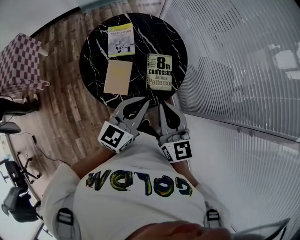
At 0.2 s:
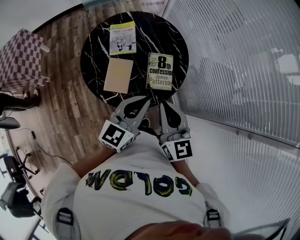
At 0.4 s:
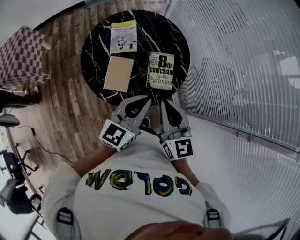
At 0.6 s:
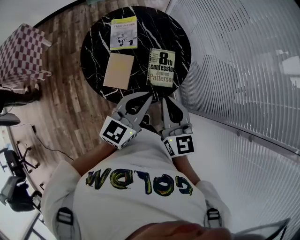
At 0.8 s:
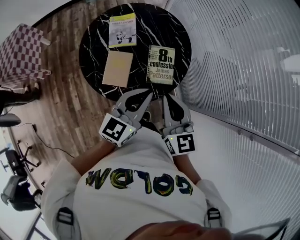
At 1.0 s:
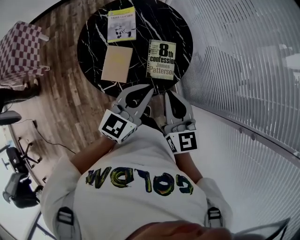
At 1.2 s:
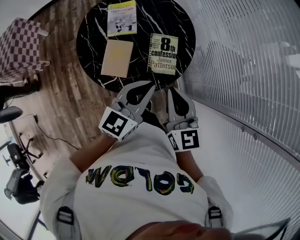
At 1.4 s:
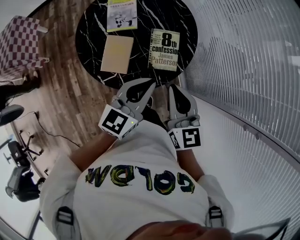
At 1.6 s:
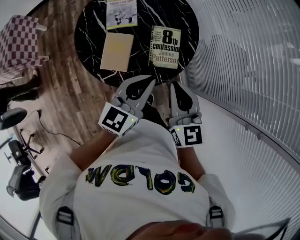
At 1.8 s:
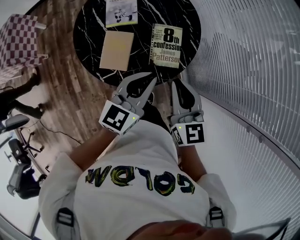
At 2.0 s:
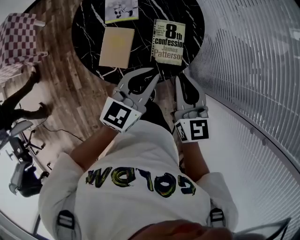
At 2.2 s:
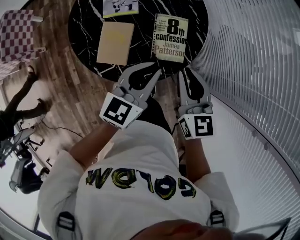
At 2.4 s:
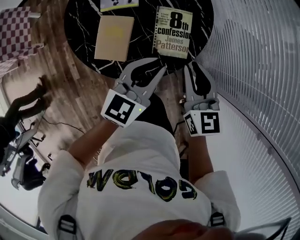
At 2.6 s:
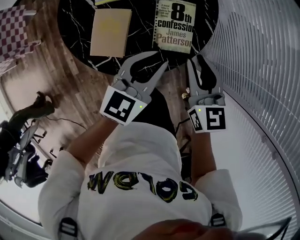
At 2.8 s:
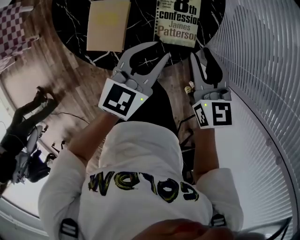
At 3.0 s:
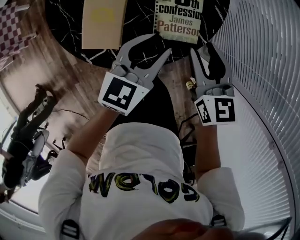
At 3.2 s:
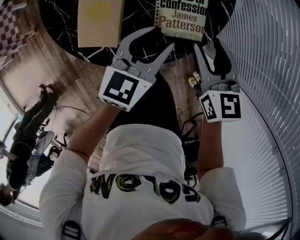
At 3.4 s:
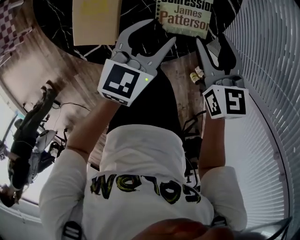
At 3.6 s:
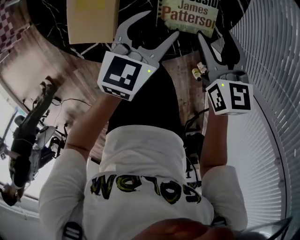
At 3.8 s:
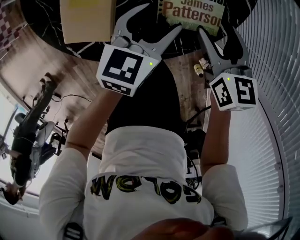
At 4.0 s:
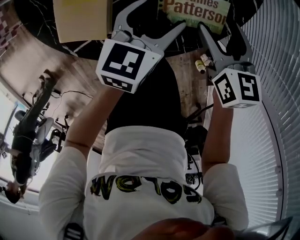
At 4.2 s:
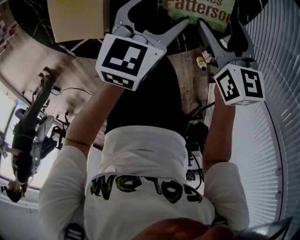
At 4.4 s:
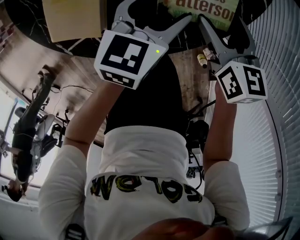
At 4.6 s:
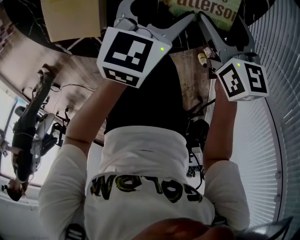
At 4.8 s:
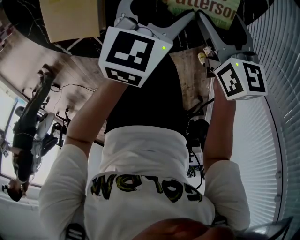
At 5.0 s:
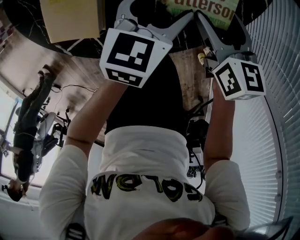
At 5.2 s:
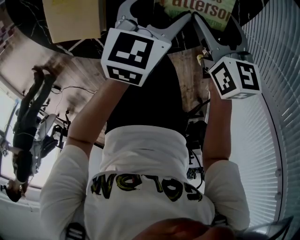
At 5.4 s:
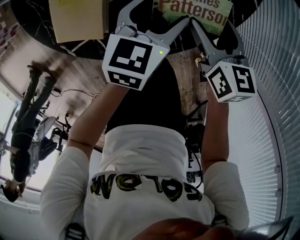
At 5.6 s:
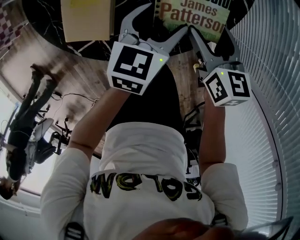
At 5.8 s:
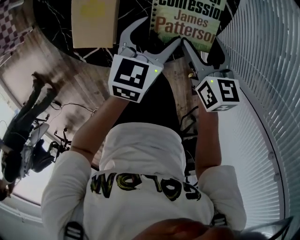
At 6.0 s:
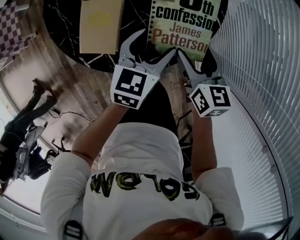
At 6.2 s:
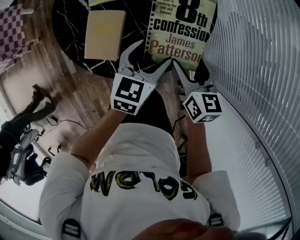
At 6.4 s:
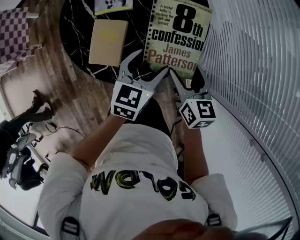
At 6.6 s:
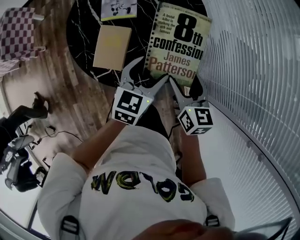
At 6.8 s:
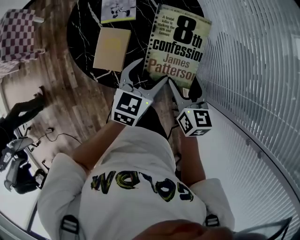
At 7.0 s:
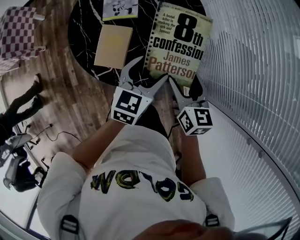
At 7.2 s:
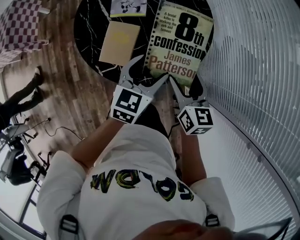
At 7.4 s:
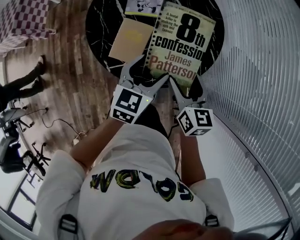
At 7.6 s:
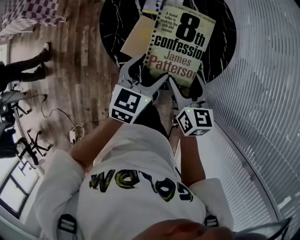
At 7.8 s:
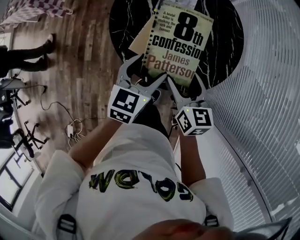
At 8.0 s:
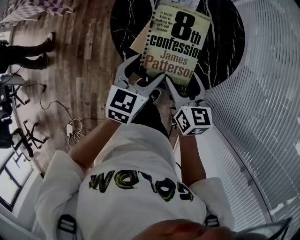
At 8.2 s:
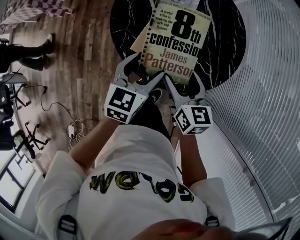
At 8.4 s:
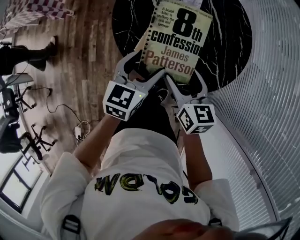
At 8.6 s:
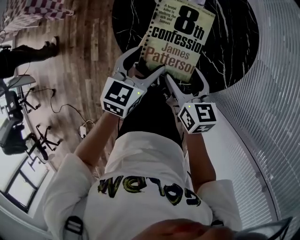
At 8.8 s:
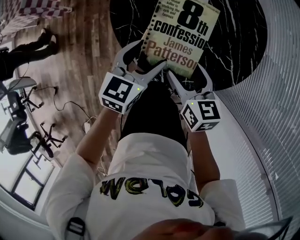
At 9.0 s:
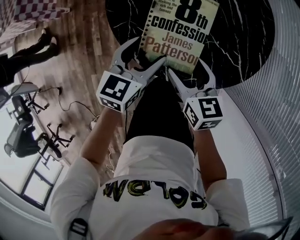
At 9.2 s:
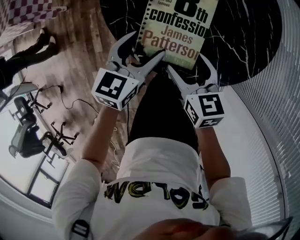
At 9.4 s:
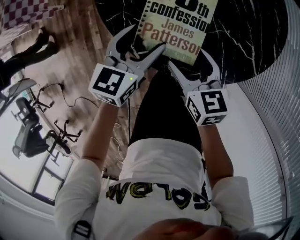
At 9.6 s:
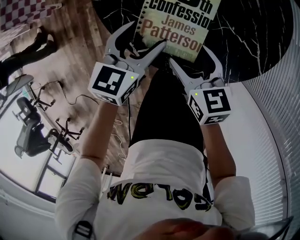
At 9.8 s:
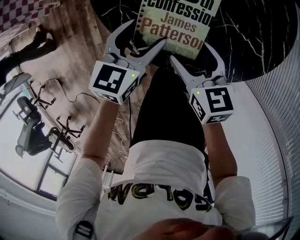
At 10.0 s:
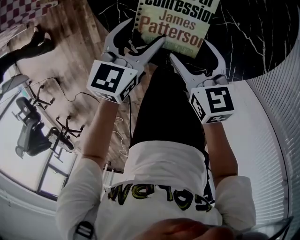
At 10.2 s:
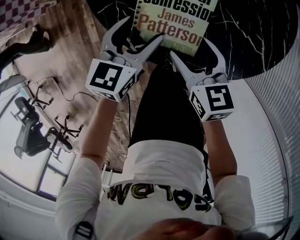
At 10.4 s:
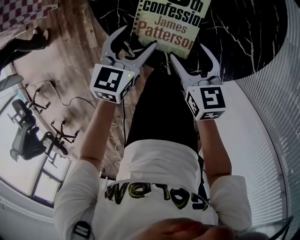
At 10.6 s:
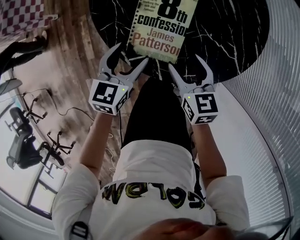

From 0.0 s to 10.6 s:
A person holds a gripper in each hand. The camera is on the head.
From 0.0 s to 1.6 s: The left gripper ends up some 5 cm from where it was. The right gripper moves downward, some 5 cm.
From 1.6 s to 3.0 s: The left gripper moves downward, roughly 20 cm, and opens up; the right gripper heads downward and forward, covering approximately 20 cm, and opens its fingers.
From 3.0 s to 4.6 s: Both grippers travel together downward, about 20 cm. The left gripper opens up. Meanwhile the right gripper opens its fingers.
From 4.6 s to 6.0 s: Both grippers move upward, roughly 10 cm.
From 6.0 s to 7.6 s: The two grippers go roughly 20 cm to the left and upward.
From 7.6 s to 9.0 s: The grippers both shift to the left and downward by about 15 cm.

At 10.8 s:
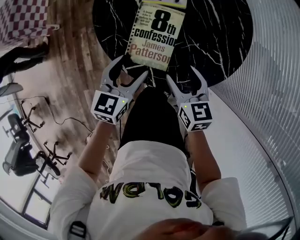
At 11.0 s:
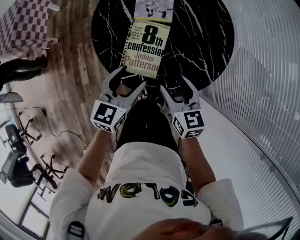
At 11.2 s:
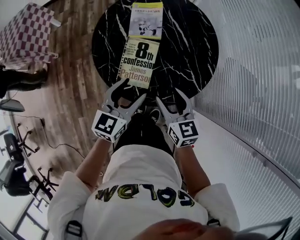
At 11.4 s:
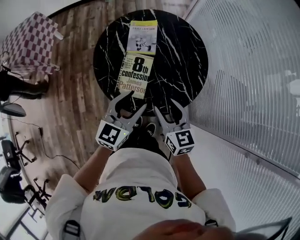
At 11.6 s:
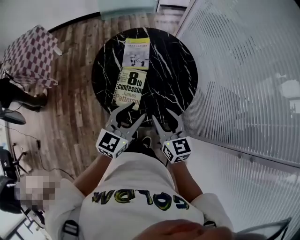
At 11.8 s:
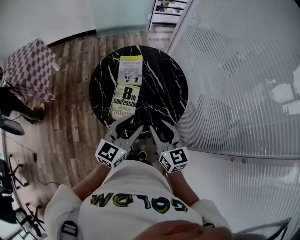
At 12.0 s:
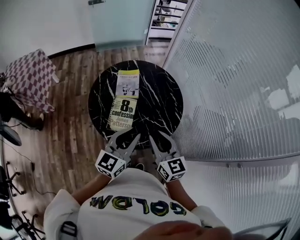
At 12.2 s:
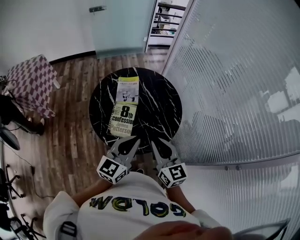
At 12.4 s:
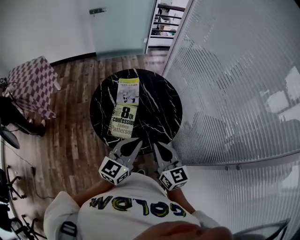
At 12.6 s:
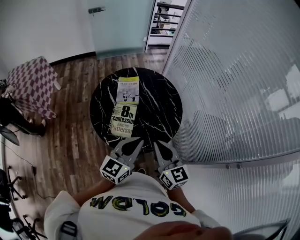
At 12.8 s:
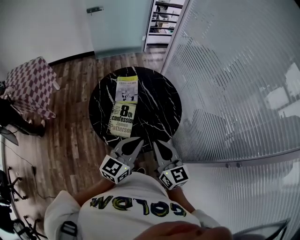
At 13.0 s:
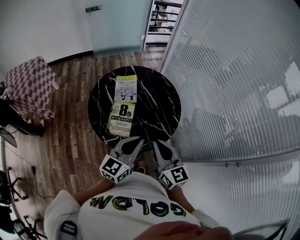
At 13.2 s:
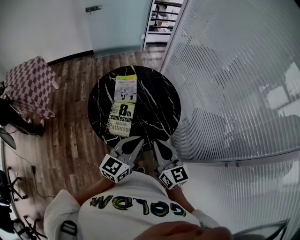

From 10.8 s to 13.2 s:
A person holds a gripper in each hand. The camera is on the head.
From 10.8 s to 12.0 s: The right gripper heads upward, covering roughly 25 cm, turns by some 30 degrees, and closes up. Meanwhile the left gripper heads upward and to the right, covering some 30 cm, rotates some 30 degrees, and closes.
From 12.0 s to 13.2 s: The grippers stay close to where they were, moving slightly.

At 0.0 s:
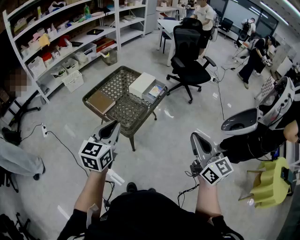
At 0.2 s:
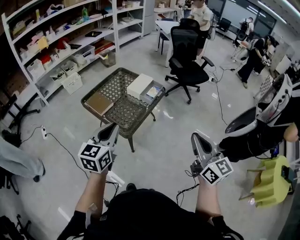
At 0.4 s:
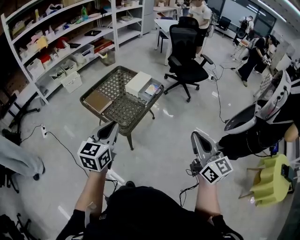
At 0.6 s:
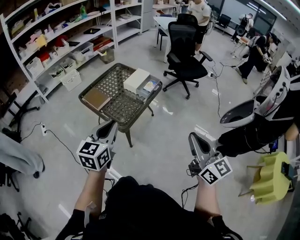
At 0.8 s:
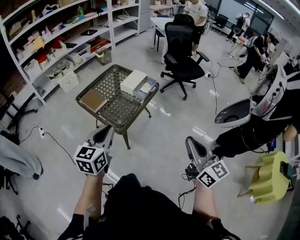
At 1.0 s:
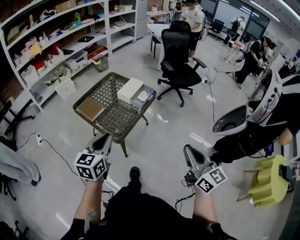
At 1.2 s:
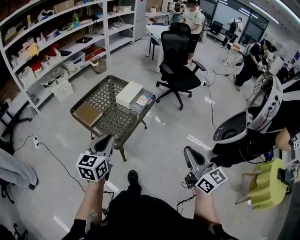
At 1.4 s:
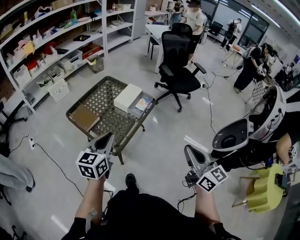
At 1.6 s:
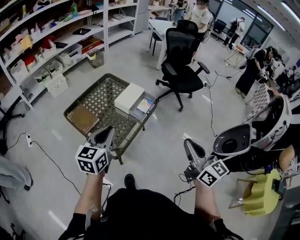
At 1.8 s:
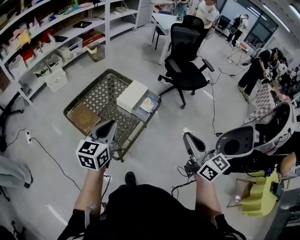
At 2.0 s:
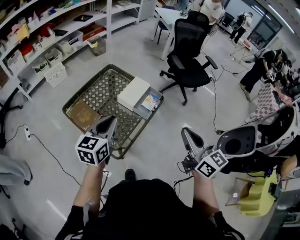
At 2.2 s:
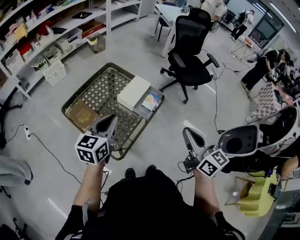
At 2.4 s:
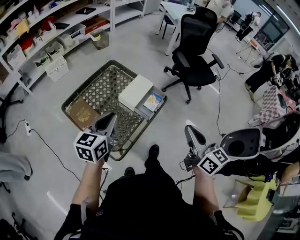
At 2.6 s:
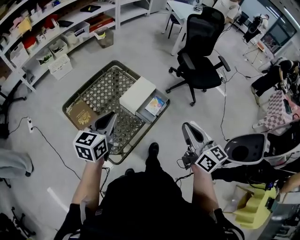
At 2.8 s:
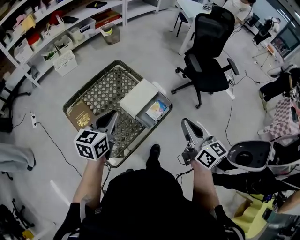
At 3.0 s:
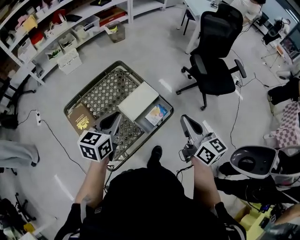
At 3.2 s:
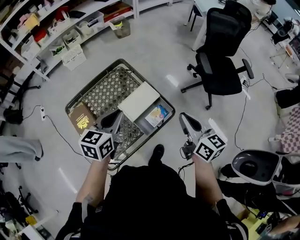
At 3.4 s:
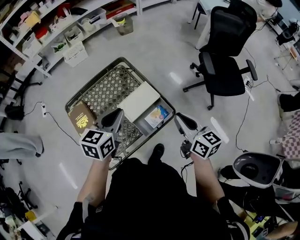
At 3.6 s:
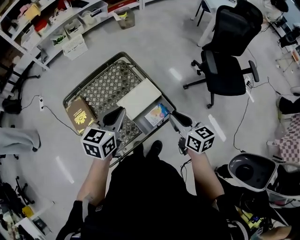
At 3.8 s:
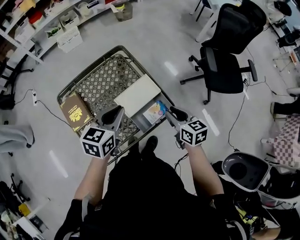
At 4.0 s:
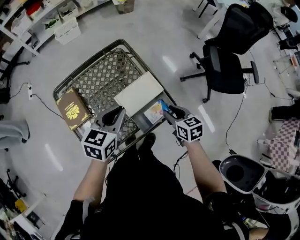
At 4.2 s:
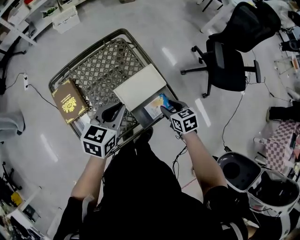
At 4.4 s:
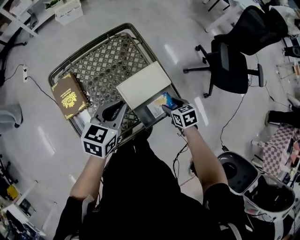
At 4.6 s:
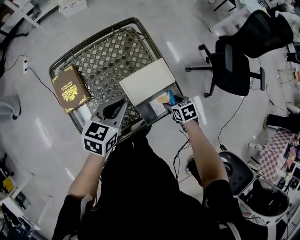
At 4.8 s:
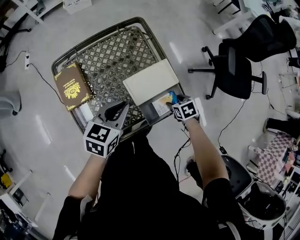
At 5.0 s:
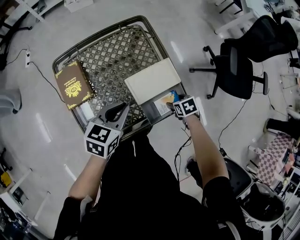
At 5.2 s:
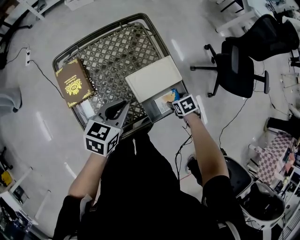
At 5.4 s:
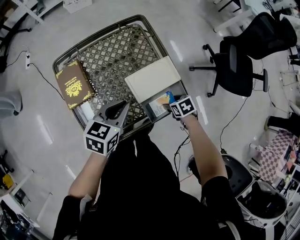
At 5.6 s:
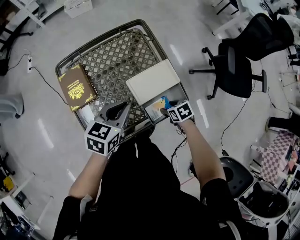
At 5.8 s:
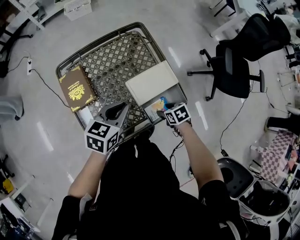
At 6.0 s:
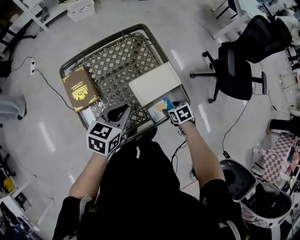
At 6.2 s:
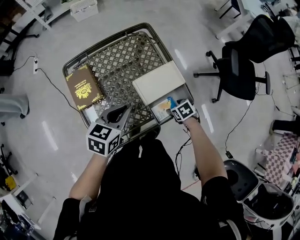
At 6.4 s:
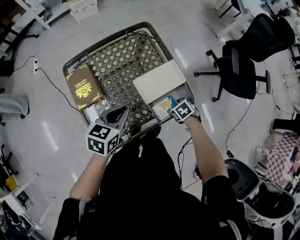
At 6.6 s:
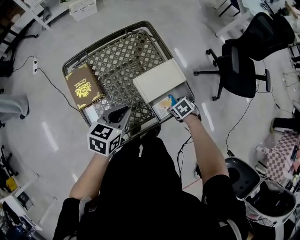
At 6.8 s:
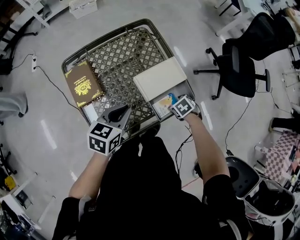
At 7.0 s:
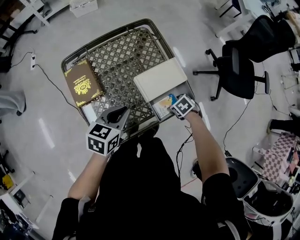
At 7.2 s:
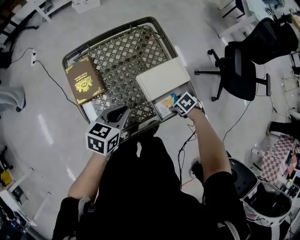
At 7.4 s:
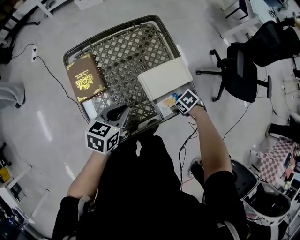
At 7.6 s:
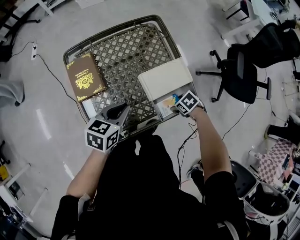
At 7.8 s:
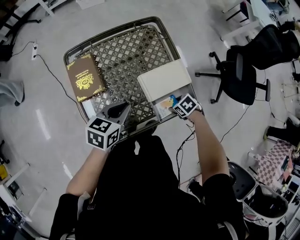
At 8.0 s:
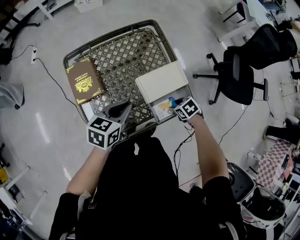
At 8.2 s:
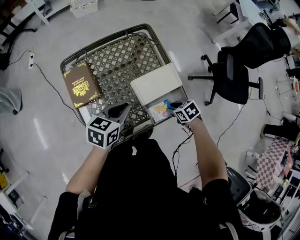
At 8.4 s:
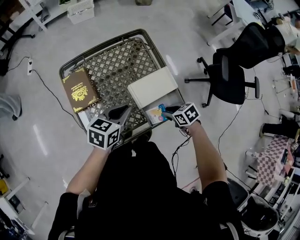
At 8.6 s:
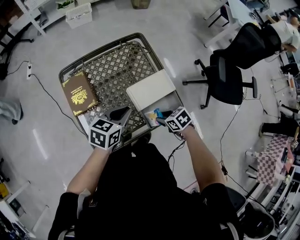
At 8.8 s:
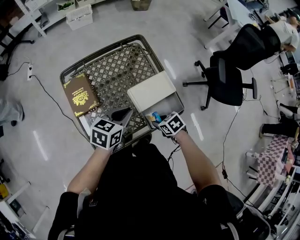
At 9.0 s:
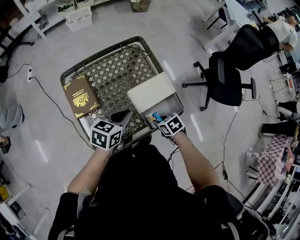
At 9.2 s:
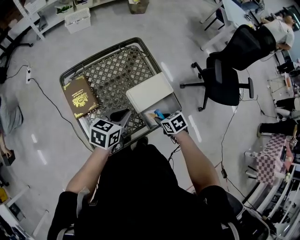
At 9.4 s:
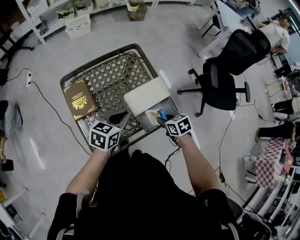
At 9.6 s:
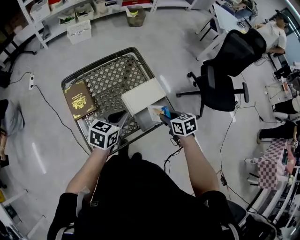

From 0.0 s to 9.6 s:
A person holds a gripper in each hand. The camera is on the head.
From 0.0 s to 1.6 s: Both grippers travel together forward, roughly 15 cm.
From 1.6 s to 3.2 s: Both grippers move forward, some 30 cm. The right gripper changes its angle by some 20 degrees.
From 3.2 s to 4.8 s: The right gripper shifts about 35 cm downward, points its fingers about 60 degrees further downward, and opens its fingers, while the left gripper is displaced downward by some 15 cm.
From 4.8 s to 6.4 s: The right gripper moves roughly 5 cm. The left gripper shifts by some 5 cm.
From 6.4 s to 8.0 s: The right gripper closes.
From 8.0 s to 9.6 s: The left gripper heads upward, covering about 5 cm. Meanwhile the right gripper travels upward by about 15 cm, and turns by approximately 40 degrees.

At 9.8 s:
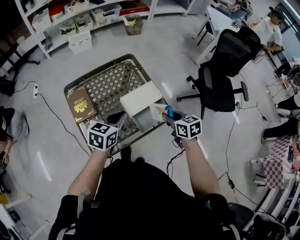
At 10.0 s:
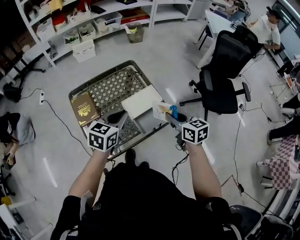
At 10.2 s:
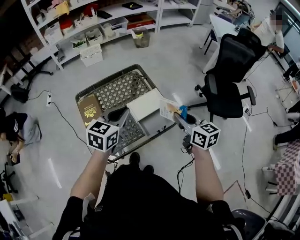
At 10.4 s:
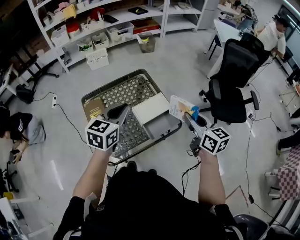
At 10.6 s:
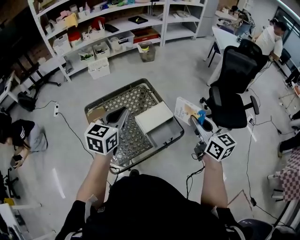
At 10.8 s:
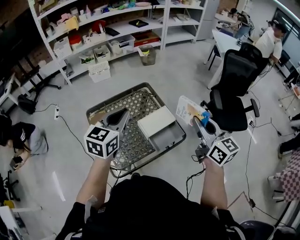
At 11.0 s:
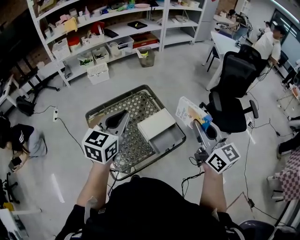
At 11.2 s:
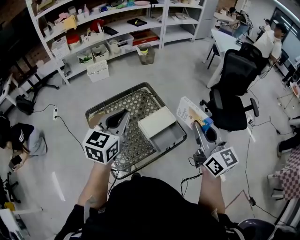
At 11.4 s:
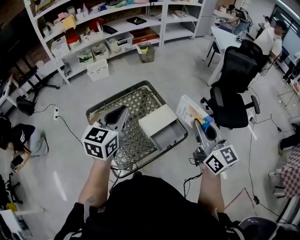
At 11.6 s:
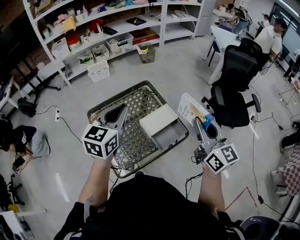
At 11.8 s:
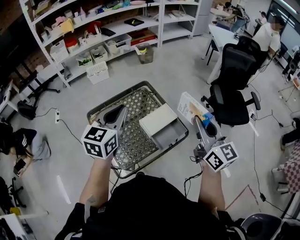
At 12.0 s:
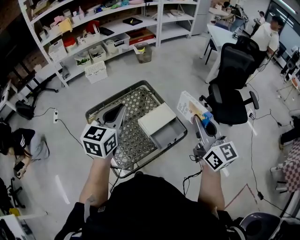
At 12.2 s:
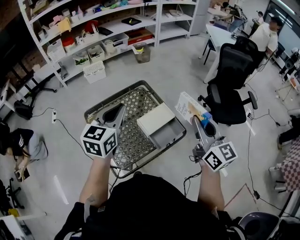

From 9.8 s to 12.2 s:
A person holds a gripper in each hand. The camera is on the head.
From 9.8 s to 11.0 s: Both grippers travel together upward, about 25 cm. The right gripper angles its fingers upward, by some 40 degrees. Meanwhile the left gripper changes its angle by some 20 degrees.
From 11.0 s to 12.2 s: The grippers make only small movements.
